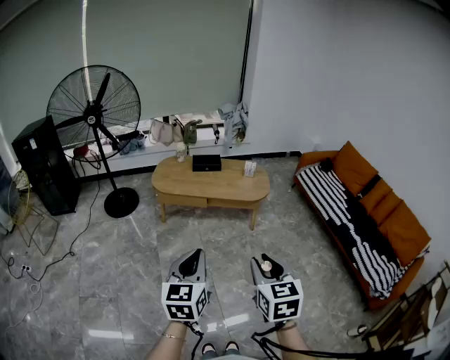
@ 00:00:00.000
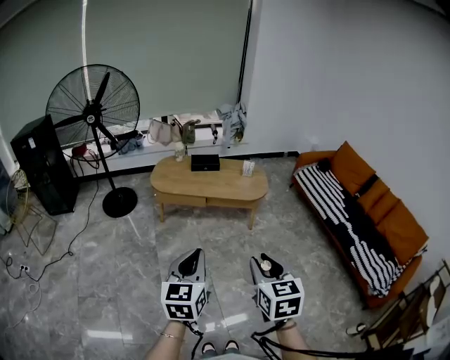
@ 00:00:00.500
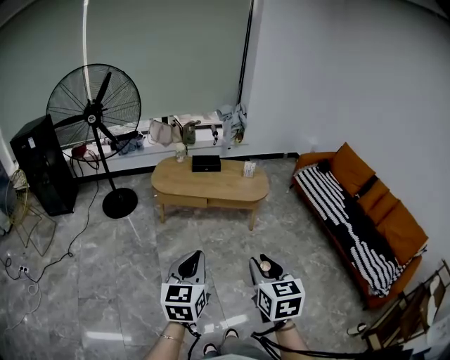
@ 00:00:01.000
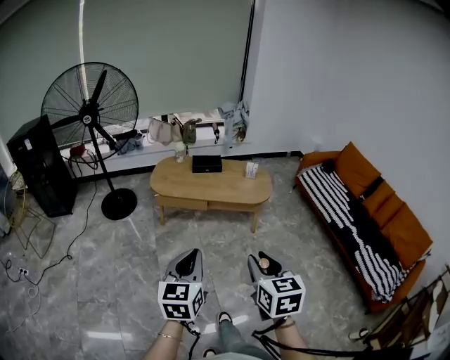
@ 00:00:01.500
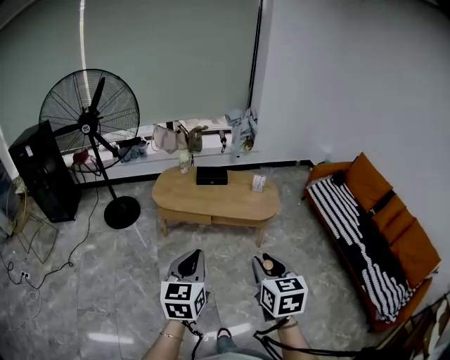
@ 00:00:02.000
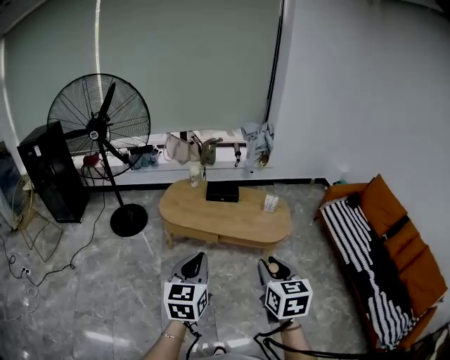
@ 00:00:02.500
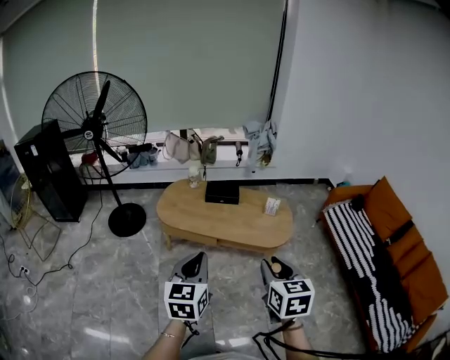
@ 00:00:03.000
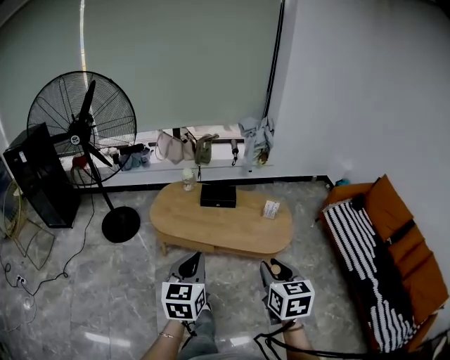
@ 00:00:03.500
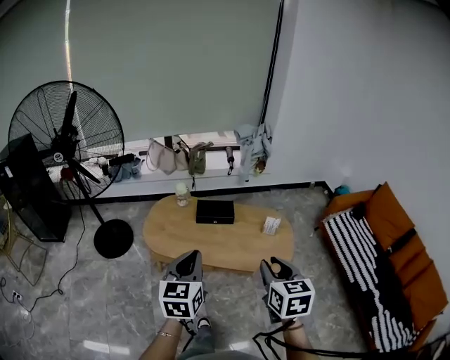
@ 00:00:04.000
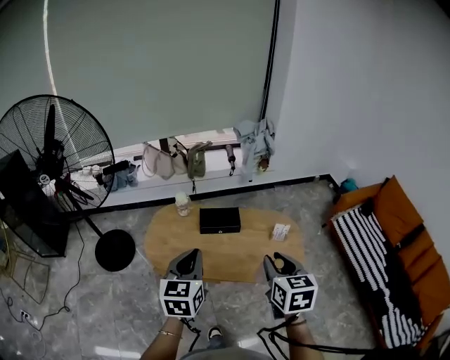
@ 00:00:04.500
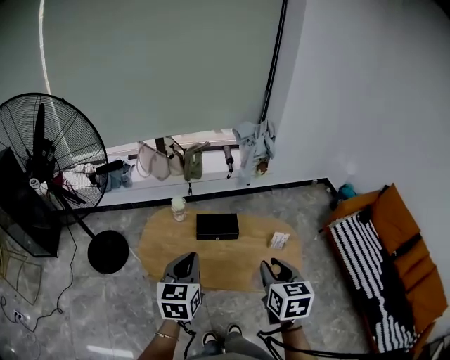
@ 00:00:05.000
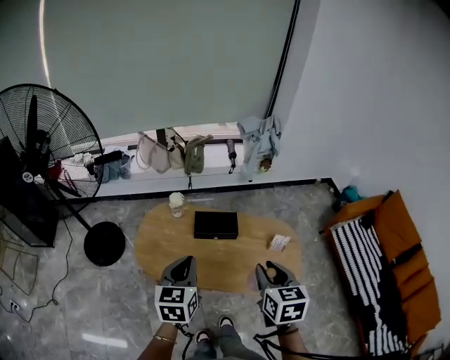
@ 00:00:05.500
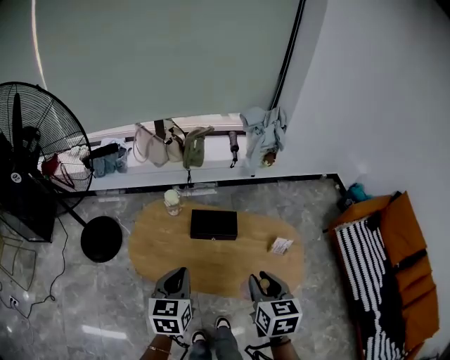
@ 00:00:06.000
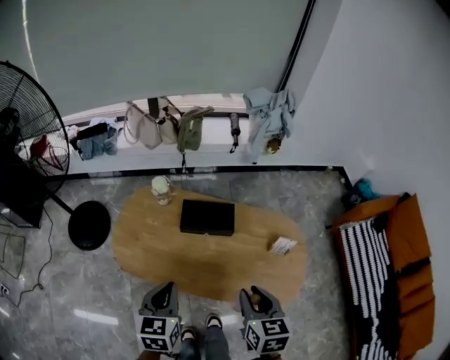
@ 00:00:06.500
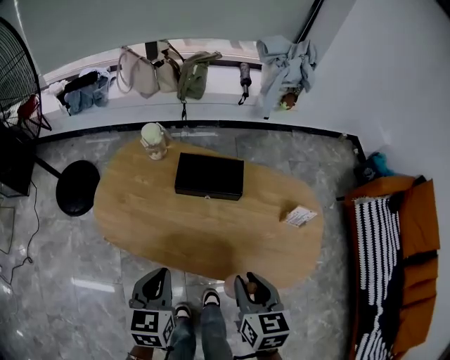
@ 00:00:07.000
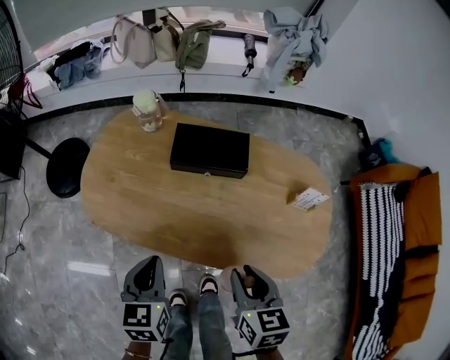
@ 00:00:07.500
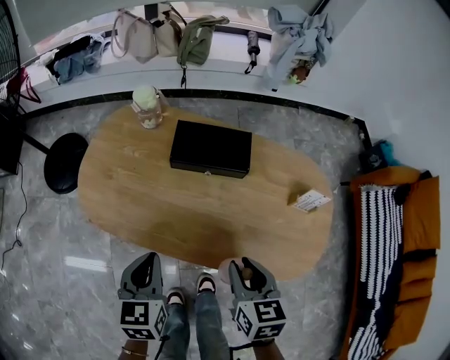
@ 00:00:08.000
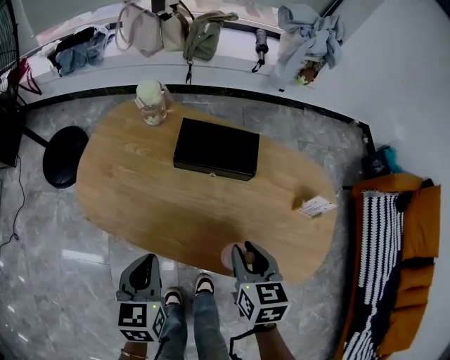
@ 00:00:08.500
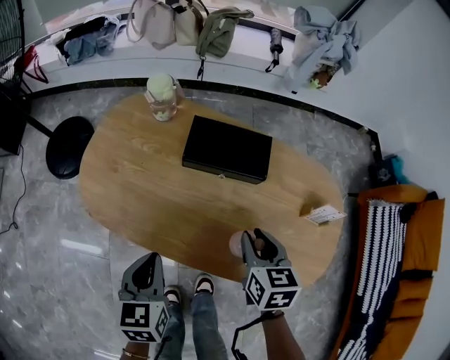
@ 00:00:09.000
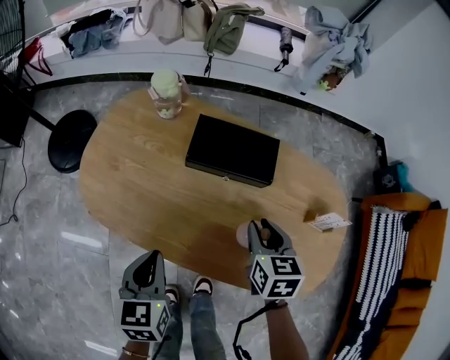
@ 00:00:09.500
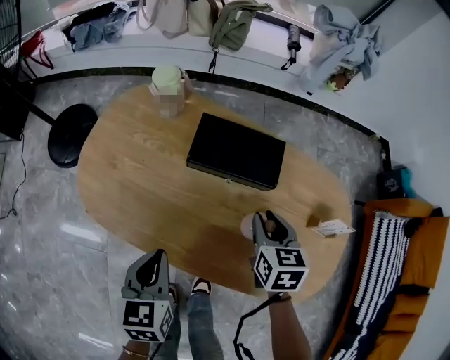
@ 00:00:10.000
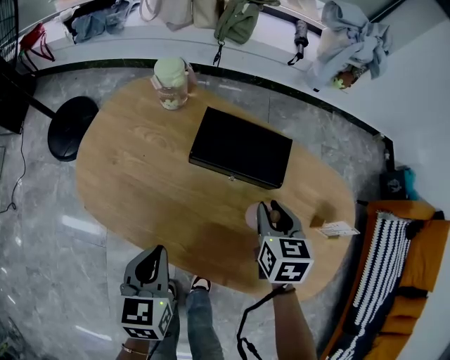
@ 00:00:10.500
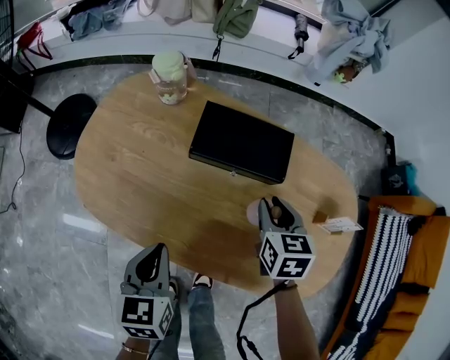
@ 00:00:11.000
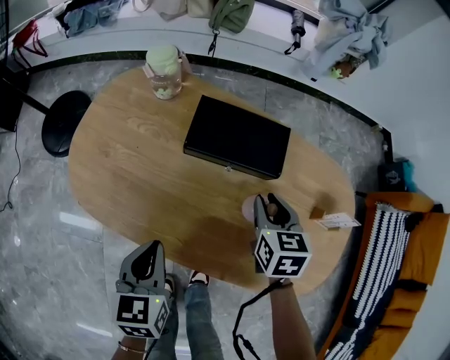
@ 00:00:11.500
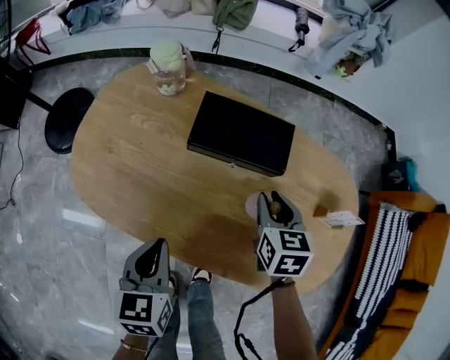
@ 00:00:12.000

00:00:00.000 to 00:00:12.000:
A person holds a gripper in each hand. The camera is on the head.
00:00:00.000 to 00:00:02.000: The two grippers go some 20 cm forward.
00:00:02.000 to 00:00:04.000: The two grippers go roughly 40 cm forward.
00:00:04.000 to 00:00:06.000: The left gripper shifts approximately 25 cm forward and downward, while the right gripper goes some 25 cm forward.
00:00:06.000 to 00:00:08.000: The two grippers go approximately 30 cm downward.
00:00:08.000 to 00:00:10.000: The right gripper travels forward and downward by roughly 20 cm. The left gripper moves about 5 cm.
00:00:10.000 to 00:00:12.000: The grippers make only small movements.

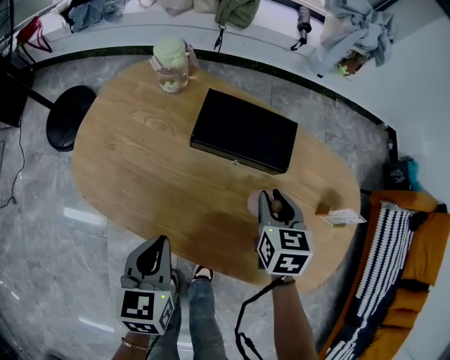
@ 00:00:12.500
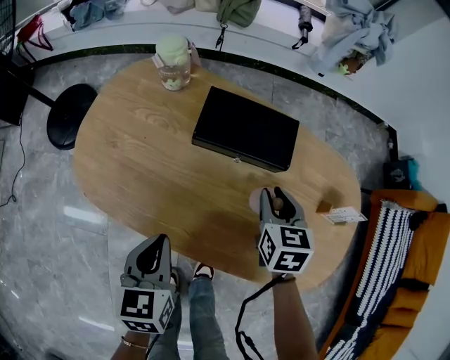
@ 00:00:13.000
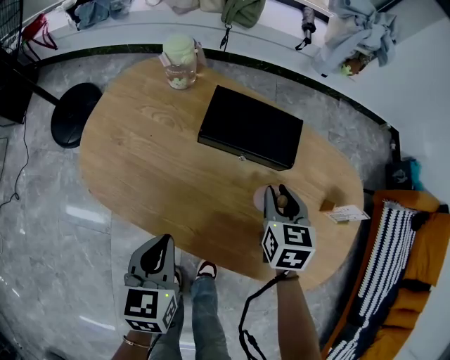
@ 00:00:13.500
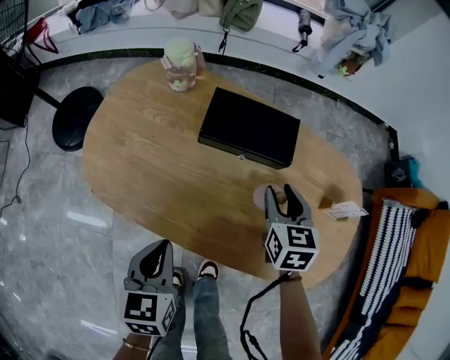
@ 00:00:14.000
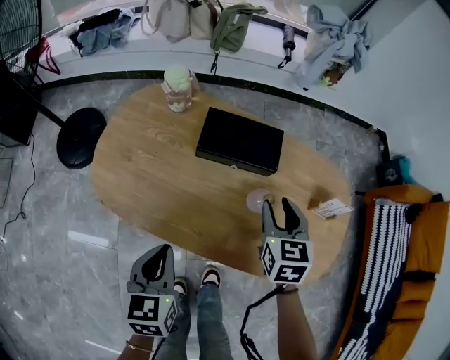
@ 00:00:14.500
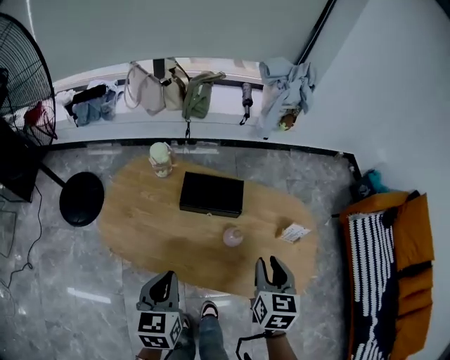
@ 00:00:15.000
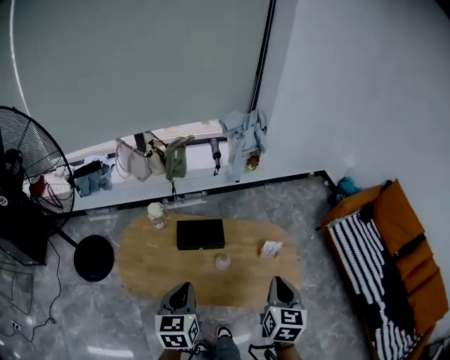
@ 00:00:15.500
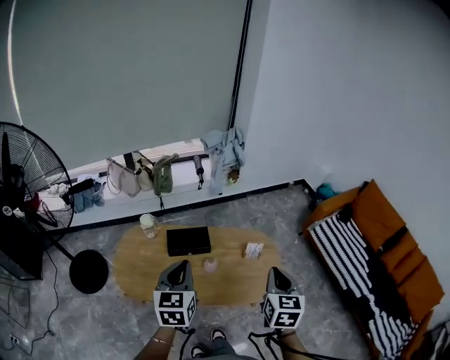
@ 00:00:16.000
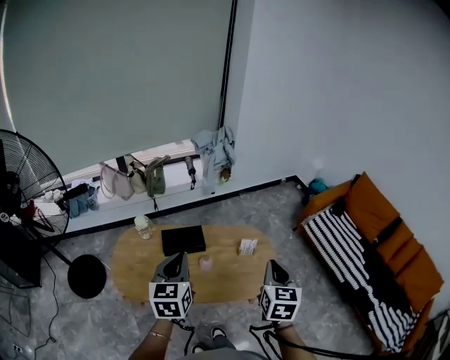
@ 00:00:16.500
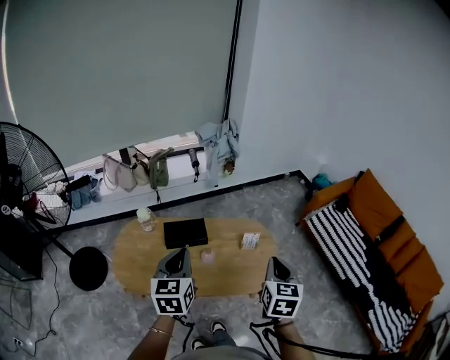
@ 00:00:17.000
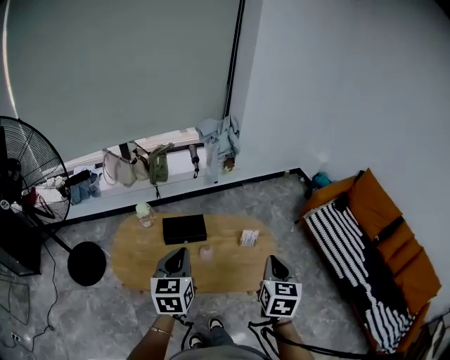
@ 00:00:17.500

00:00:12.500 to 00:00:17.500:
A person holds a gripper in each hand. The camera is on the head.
00:00:12.500 to 00:00:15.000: The right gripper travels upward and backward by some 25 cm. Meanwhile the left gripper is displaced upward by roughly 15 cm.
00:00:15.000 to 00:00:17.500: The right gripper goes approximately 30 cm upward, to the right and backward, and closes up. Meanwhile the left gripper is displaced upward and to the right by approximately 25 cm, and rotates some 20 degrees.

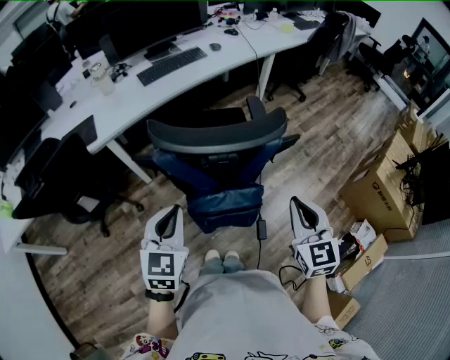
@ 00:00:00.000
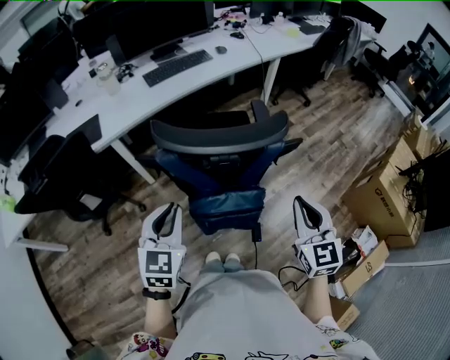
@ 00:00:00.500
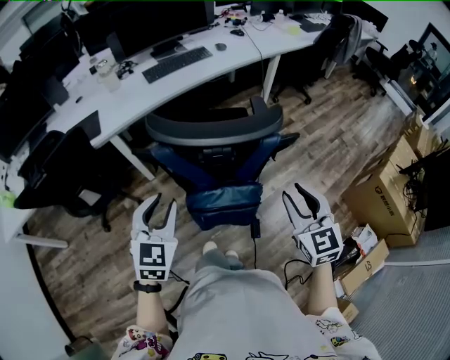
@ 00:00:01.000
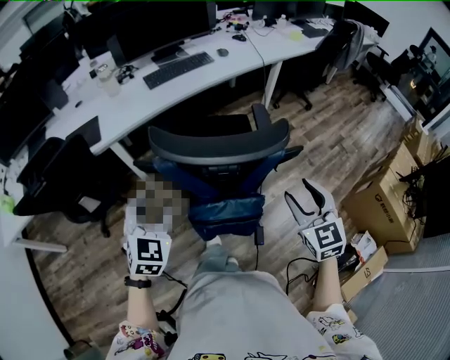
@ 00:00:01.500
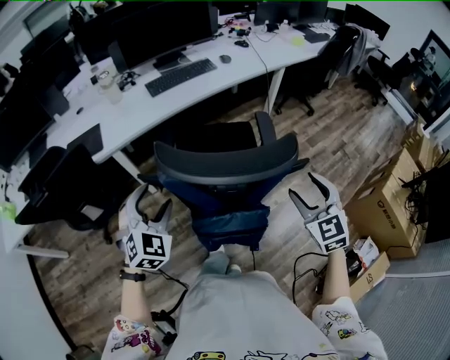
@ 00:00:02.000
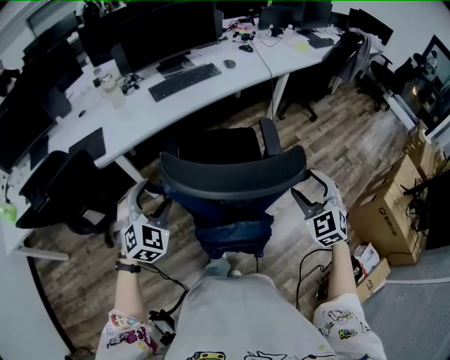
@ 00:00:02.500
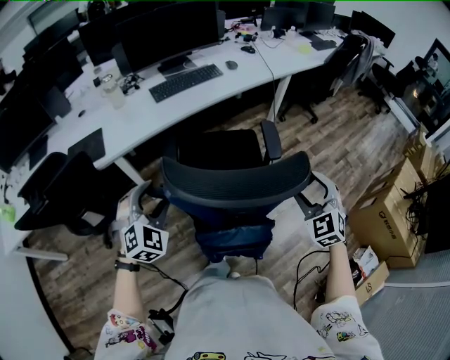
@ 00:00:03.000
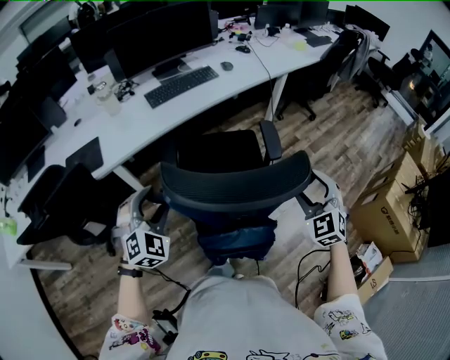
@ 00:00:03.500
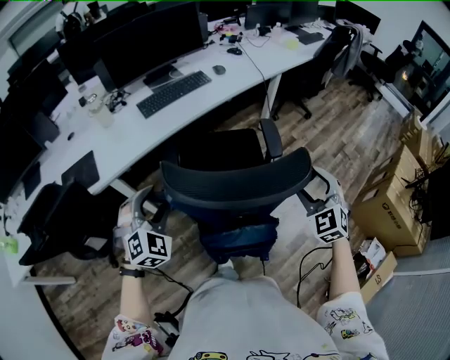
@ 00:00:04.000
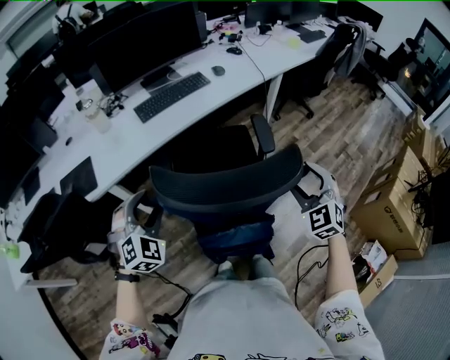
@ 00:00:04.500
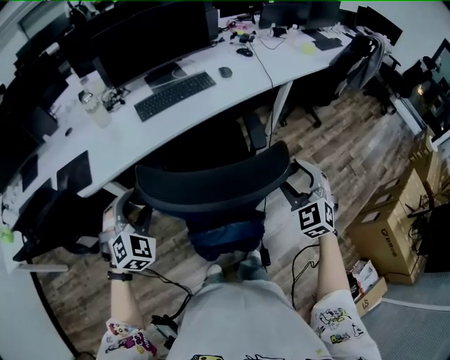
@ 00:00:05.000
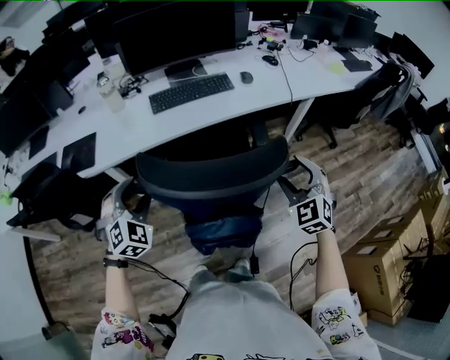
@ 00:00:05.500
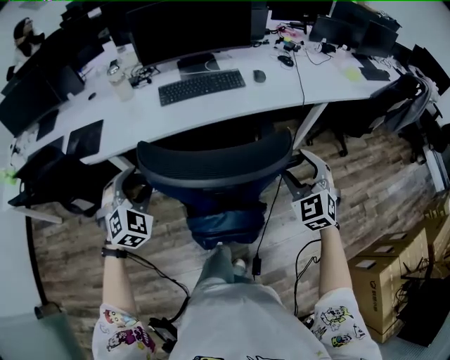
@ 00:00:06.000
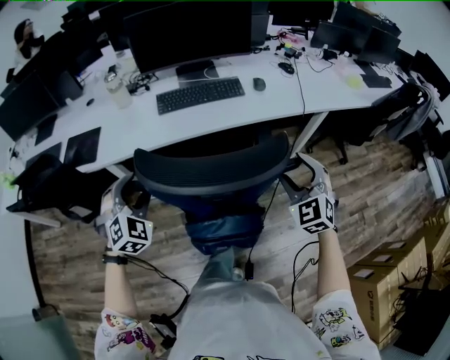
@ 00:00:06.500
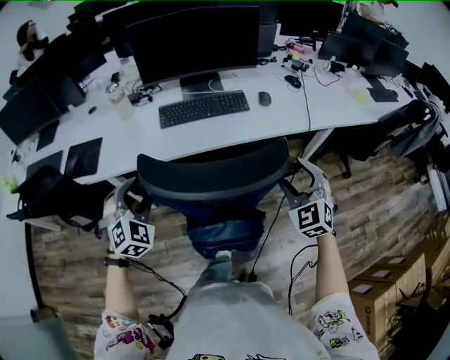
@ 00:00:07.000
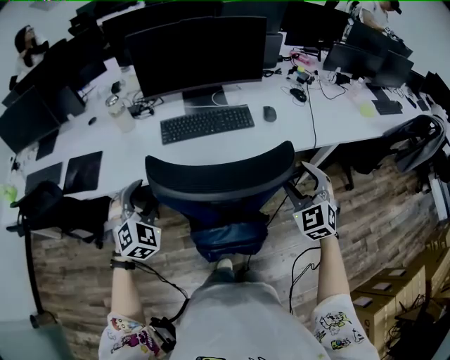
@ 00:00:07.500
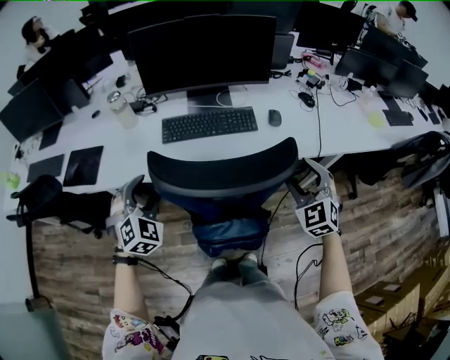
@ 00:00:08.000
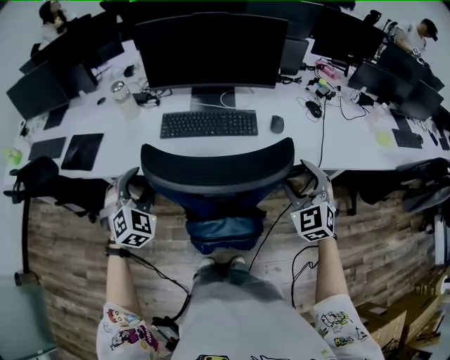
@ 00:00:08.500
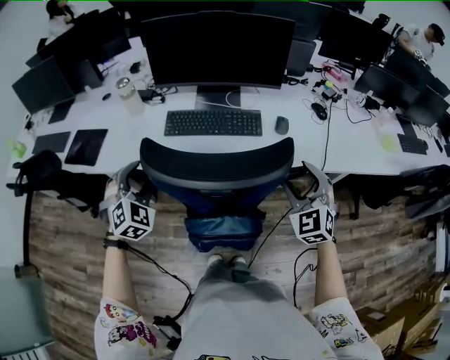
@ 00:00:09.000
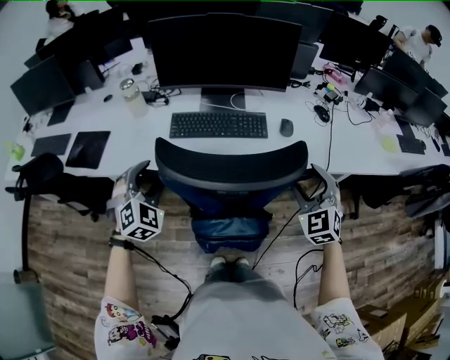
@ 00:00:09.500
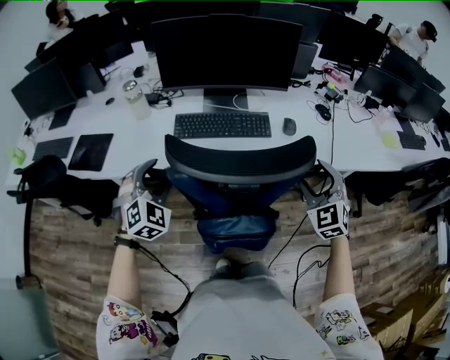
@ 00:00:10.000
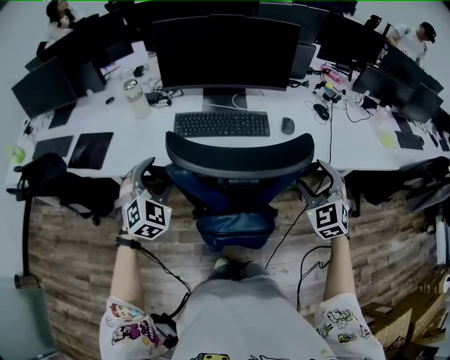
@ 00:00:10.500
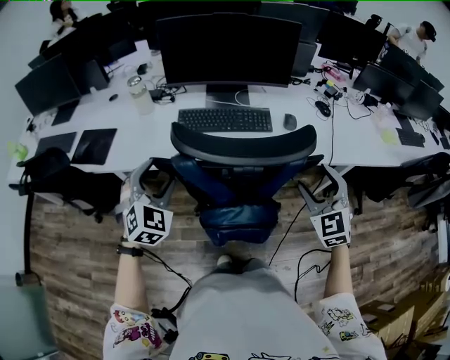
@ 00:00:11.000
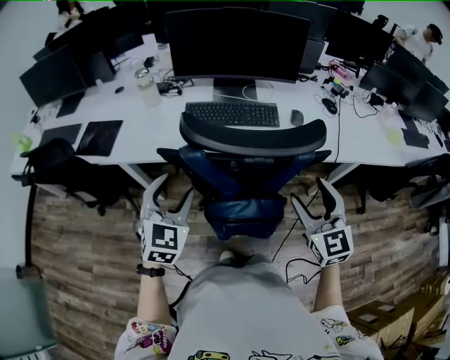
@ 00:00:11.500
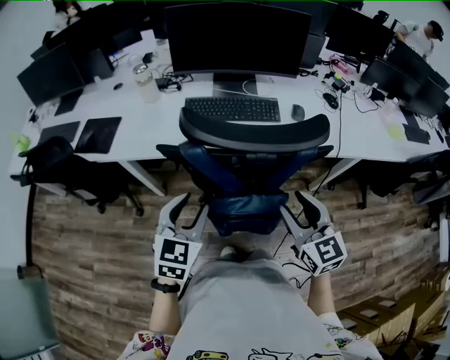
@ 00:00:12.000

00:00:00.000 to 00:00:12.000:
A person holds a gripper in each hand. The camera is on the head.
00:00:00.000 to 00:00:02.000: The left gripper travels forward and to the left by some 10 cm, changes its angle by about 30 degrees, and opens its fingers; the right gripper goes some 10 cm forward, turns by about 20 degrees, and opens.
00:00:02.000 to 00:00:04.000: Both grippers move forward, roughly 10 cm.
00:00:04.000 to 00:00:06.000: The right gripper heads forward, covering approximately 25 cm, and turns by some 20 degrees; the left gripper is displaced forward by approximately 10 cm, and rotates about 20 degrees.
00:00:06.000 to 00:00:08.000: Both grippers move forward, approximately 20 cm.
00:00:08.000 to 00:00:10.000: There are only small adjustments of the grippers.
00:00:10.000 to 00:00:12.000: The left gripper goes some 15 cm backward, and rolls counterclockwise, seen from behind, by about 40 degrees. The right gripper goes roughly 15 cm backward and to the left, and swivels about 40 degrees.
